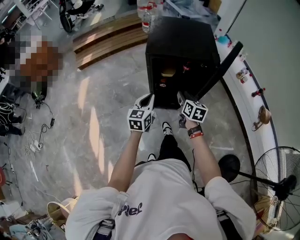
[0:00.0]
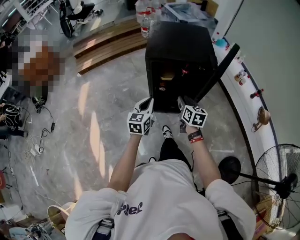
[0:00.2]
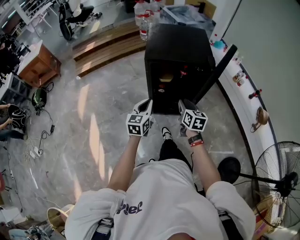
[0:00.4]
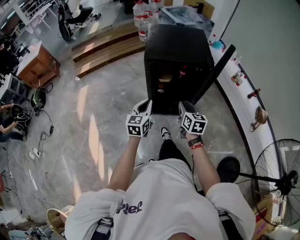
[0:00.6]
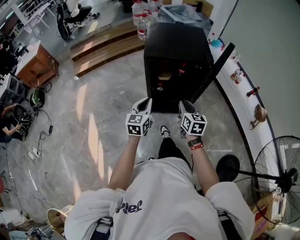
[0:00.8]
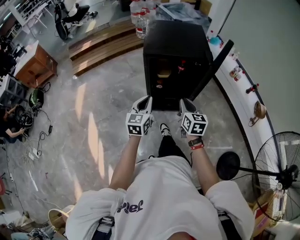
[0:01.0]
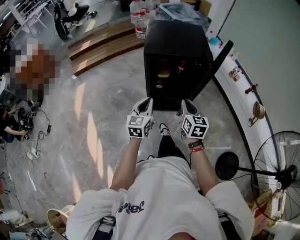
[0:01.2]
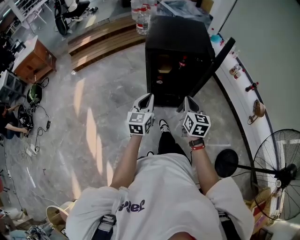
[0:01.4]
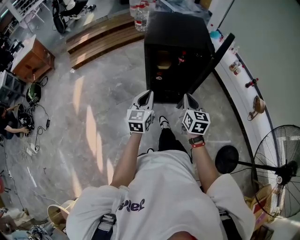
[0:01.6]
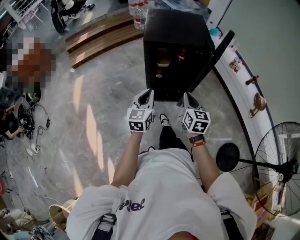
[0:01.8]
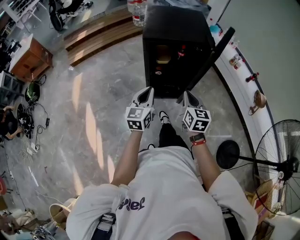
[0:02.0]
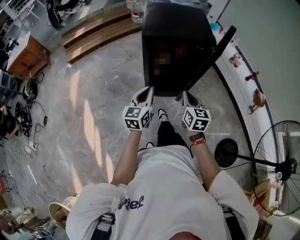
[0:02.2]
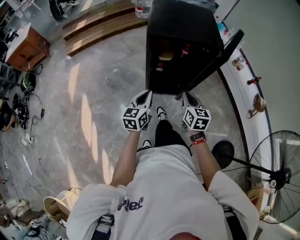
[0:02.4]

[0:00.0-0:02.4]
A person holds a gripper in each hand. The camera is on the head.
0:00.0 to 0:01.2: The right gripper moves backward and upward, approximately 15 cm, and closes its fingers. The left gripper heads backward, covering approximately 5 cm.
0:01.2 to 0:02.4: Both grippers travel together downward, approximately 5 cm.

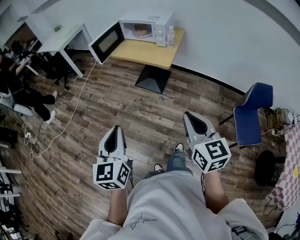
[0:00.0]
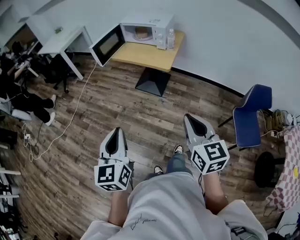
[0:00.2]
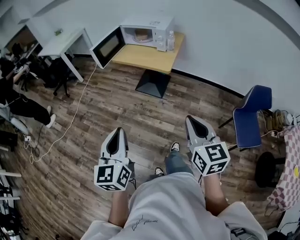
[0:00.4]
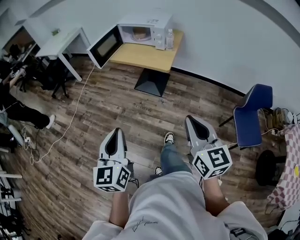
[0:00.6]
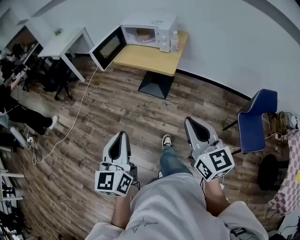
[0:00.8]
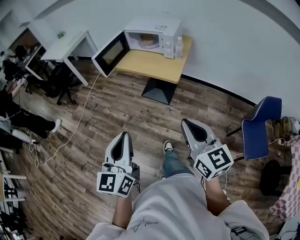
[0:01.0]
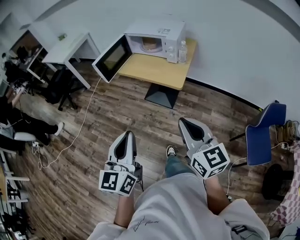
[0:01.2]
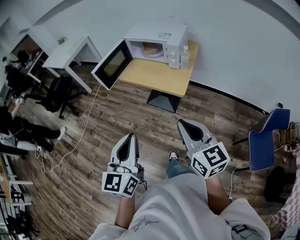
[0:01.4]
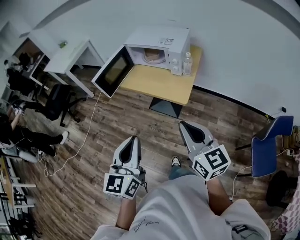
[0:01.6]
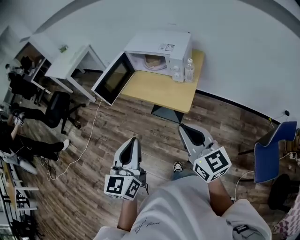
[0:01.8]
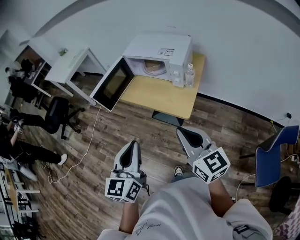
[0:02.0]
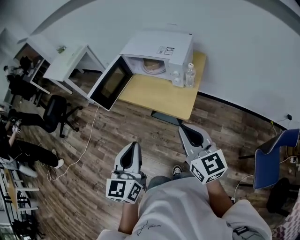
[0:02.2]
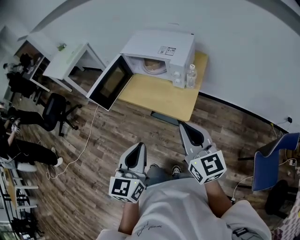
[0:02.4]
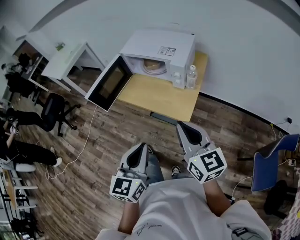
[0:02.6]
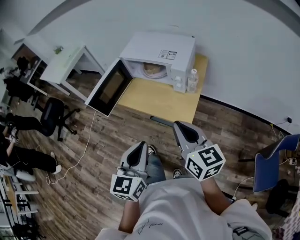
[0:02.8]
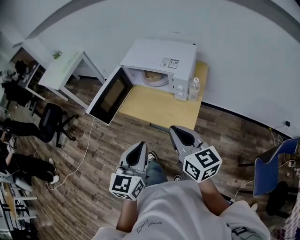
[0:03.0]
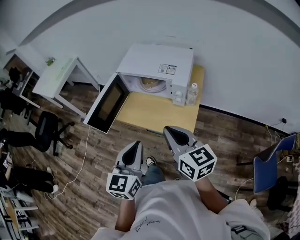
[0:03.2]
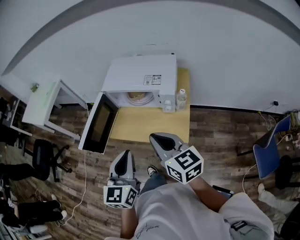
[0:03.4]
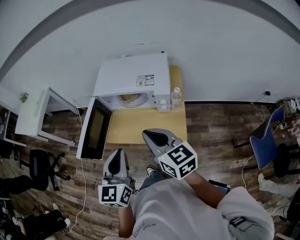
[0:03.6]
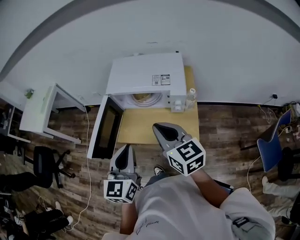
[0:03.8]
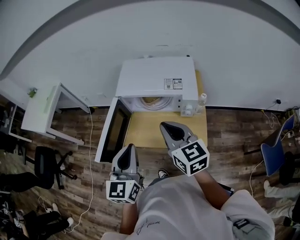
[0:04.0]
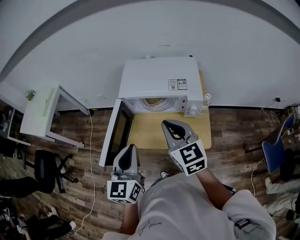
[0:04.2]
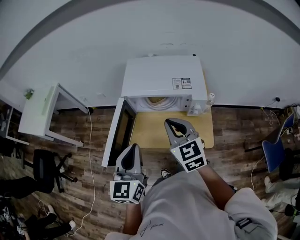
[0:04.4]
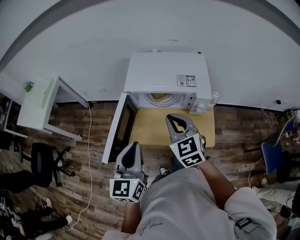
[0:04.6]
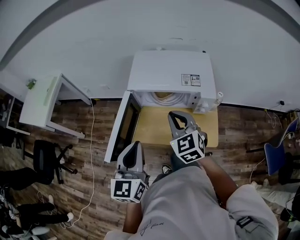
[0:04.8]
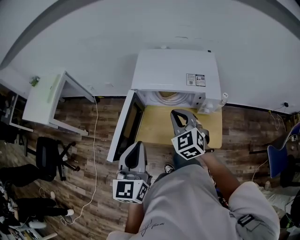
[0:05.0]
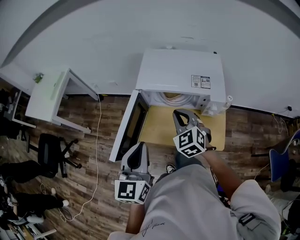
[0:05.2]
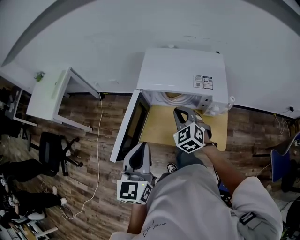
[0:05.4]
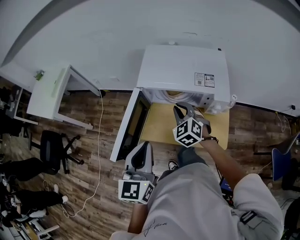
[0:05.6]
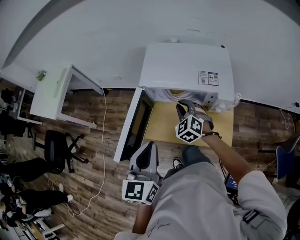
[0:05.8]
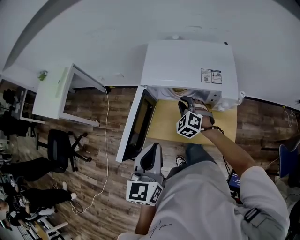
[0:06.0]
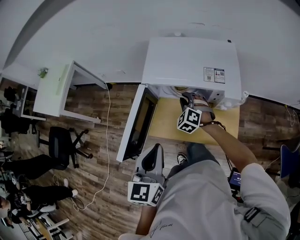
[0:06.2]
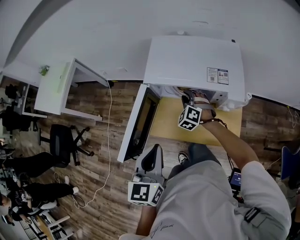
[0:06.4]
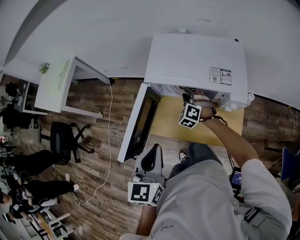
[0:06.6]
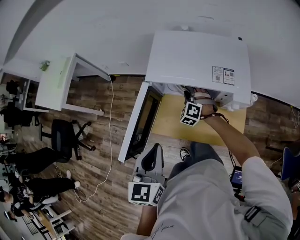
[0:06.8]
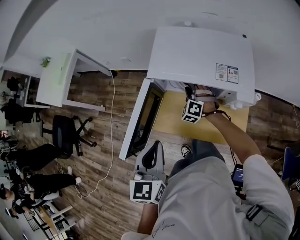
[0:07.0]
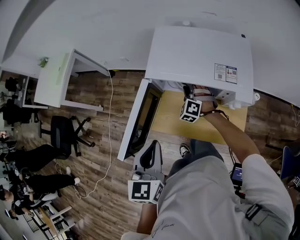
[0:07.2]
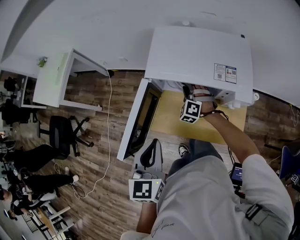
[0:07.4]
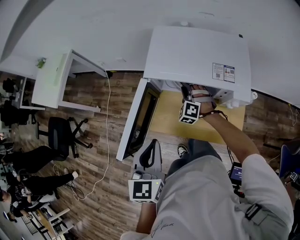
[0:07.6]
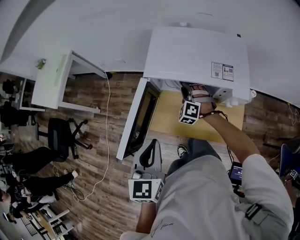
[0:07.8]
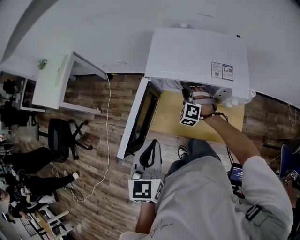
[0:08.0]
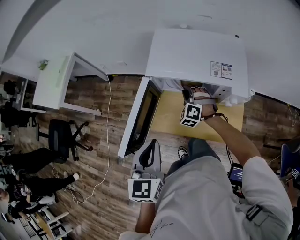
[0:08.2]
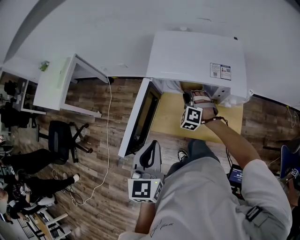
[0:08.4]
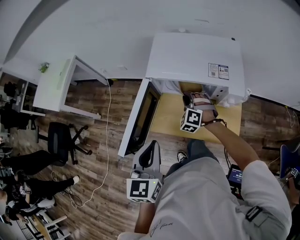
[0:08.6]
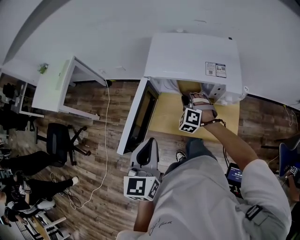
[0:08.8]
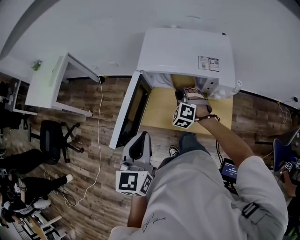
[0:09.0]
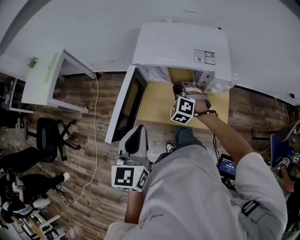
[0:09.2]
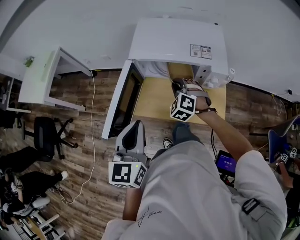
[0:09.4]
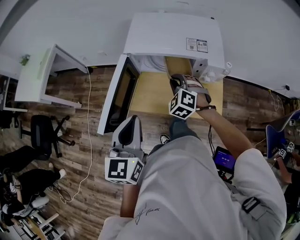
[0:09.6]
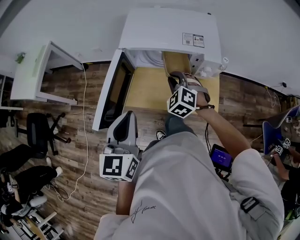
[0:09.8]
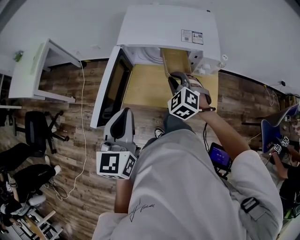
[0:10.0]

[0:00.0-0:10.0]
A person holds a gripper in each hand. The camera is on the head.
0:00.0 to 0:01.4: Both grippers travel together forward, some 20 cm.
0:01.4 to 0:02.8: Both grippers move forward, roughly 20 cm.
0:02.8 to 0:04.2: Both grippers move forward and to the left, some 30 cm. The right gripper changes its angle by roughly 30 degrees.
0:04.2 to 0:05.8: The right gripper heads downward and forward, covering some 25 cm, and rotates roughly 40 degrees.
0:05.8 to 0:07.2: The right gripper is displaced downward and forward by roughly 15 cm, and rotates approximately 20 degrees, while the left gripper ends up some 5 cm from where it was.
0:07.2 to 0:08.6: The right gripper travels backward by some 5 cm.
0:08.6 to 0:10.0: The right gripper travels backward and upward by approximately 10 cm.

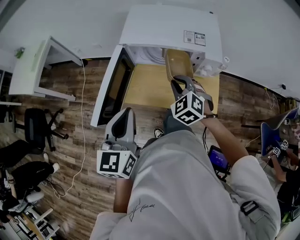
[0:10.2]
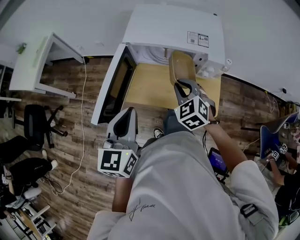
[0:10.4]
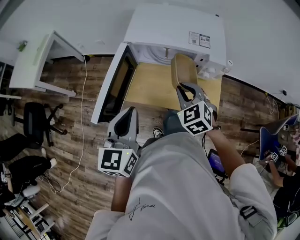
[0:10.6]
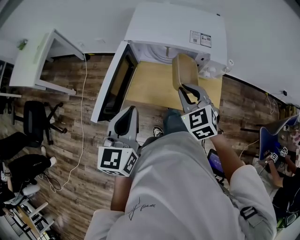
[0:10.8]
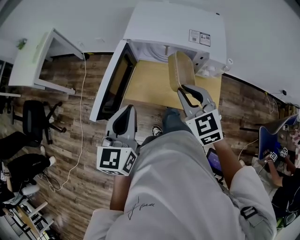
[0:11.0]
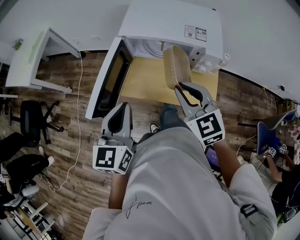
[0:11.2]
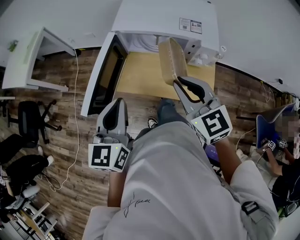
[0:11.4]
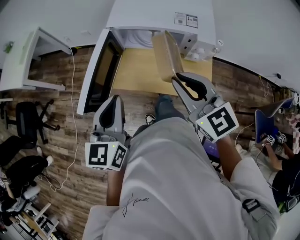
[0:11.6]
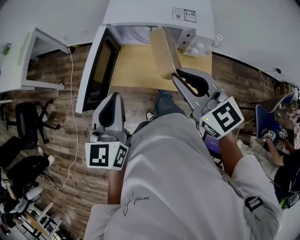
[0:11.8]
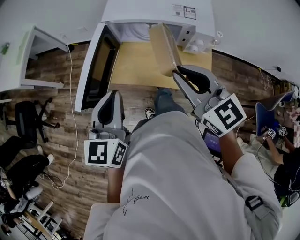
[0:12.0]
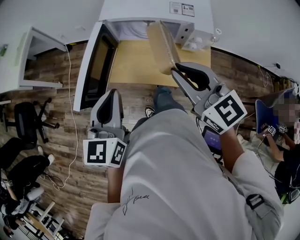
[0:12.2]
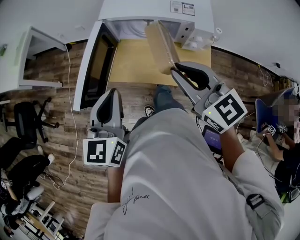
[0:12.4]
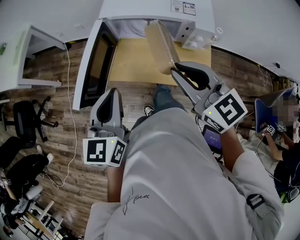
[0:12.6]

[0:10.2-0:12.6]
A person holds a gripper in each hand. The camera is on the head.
0:10.2 to 0:11.4: The right gripper is displaced upward and backward by about 15 cm, and turns by about 40 degrees.
0:11.4 to 0:12.6: The grippers make only small movements.

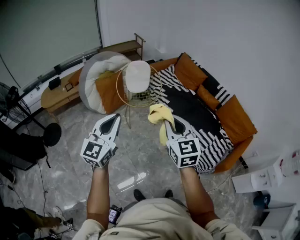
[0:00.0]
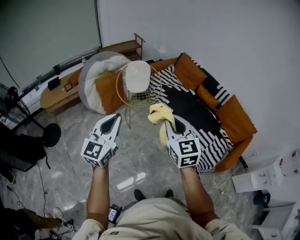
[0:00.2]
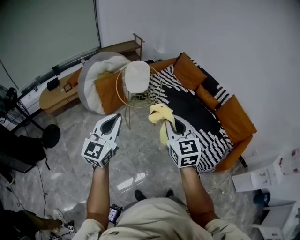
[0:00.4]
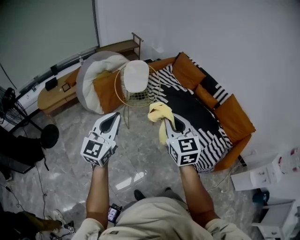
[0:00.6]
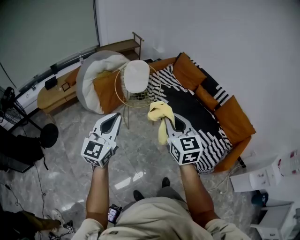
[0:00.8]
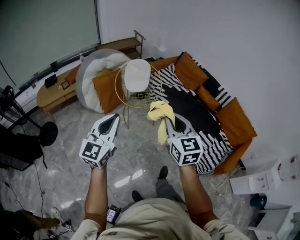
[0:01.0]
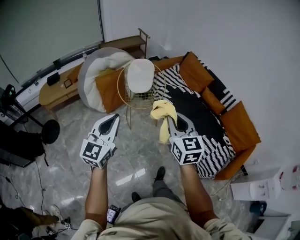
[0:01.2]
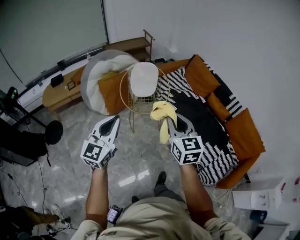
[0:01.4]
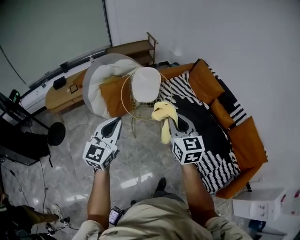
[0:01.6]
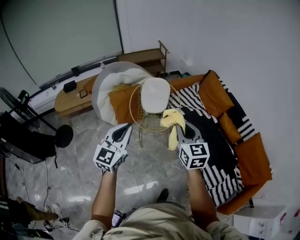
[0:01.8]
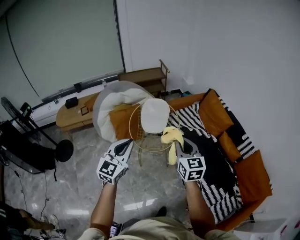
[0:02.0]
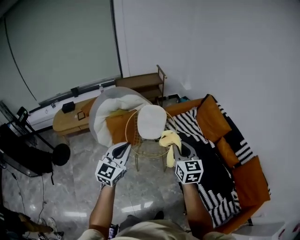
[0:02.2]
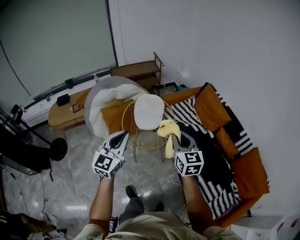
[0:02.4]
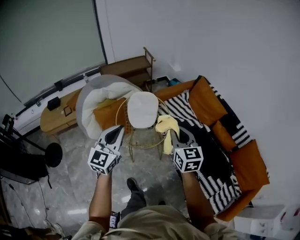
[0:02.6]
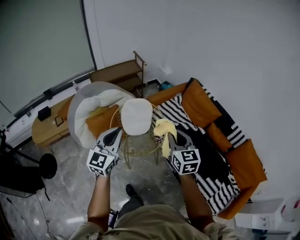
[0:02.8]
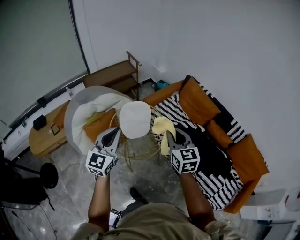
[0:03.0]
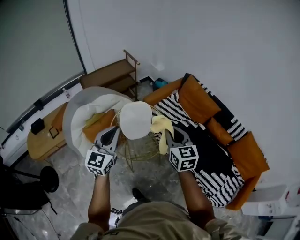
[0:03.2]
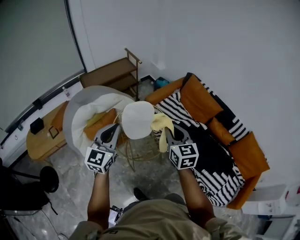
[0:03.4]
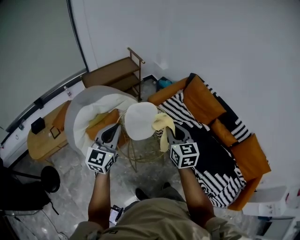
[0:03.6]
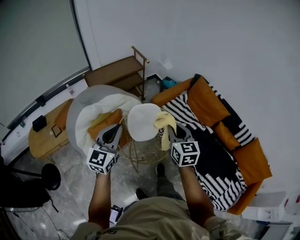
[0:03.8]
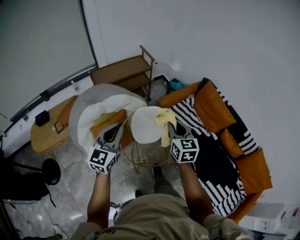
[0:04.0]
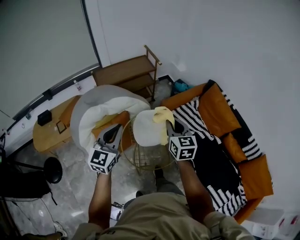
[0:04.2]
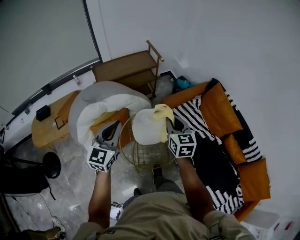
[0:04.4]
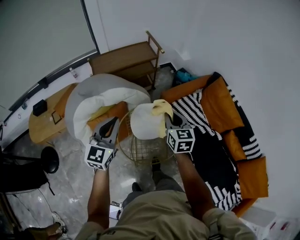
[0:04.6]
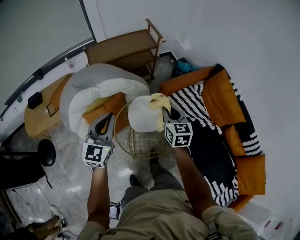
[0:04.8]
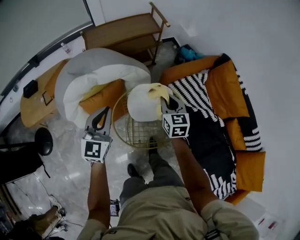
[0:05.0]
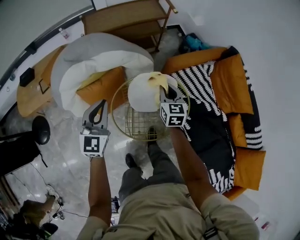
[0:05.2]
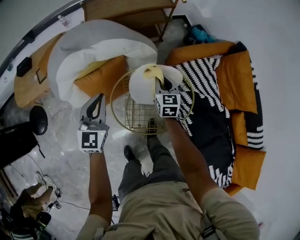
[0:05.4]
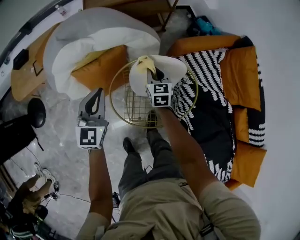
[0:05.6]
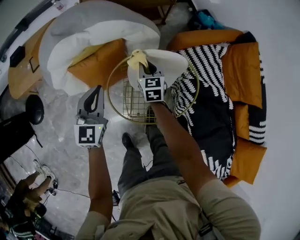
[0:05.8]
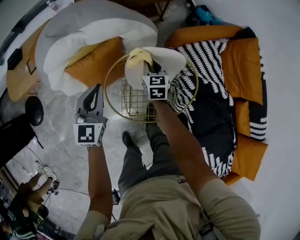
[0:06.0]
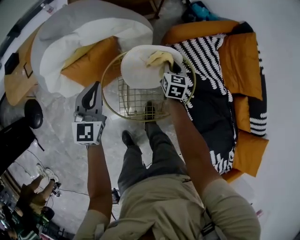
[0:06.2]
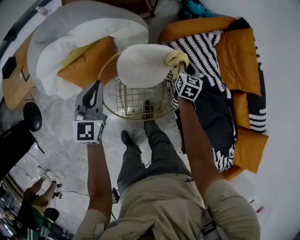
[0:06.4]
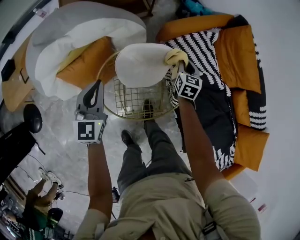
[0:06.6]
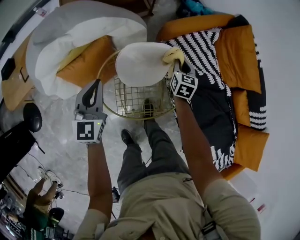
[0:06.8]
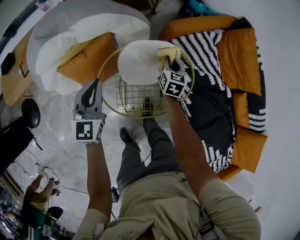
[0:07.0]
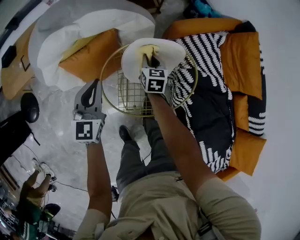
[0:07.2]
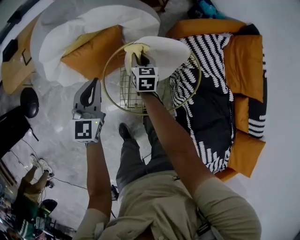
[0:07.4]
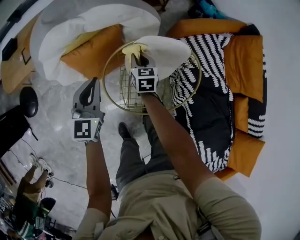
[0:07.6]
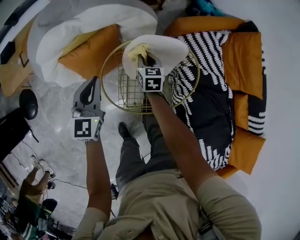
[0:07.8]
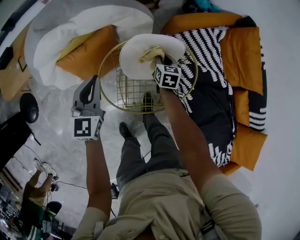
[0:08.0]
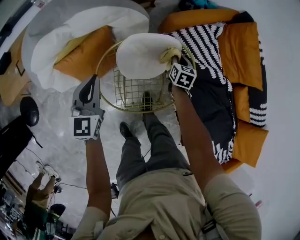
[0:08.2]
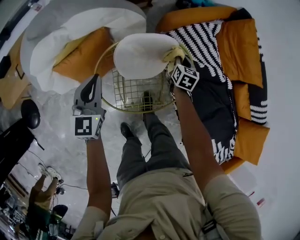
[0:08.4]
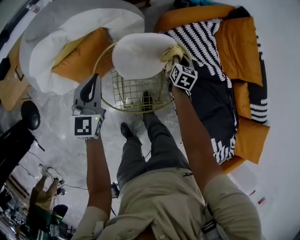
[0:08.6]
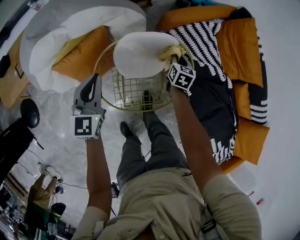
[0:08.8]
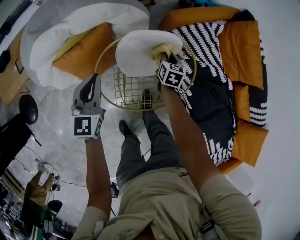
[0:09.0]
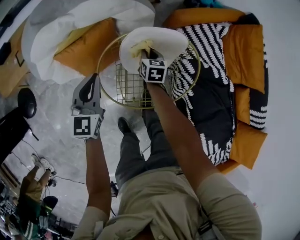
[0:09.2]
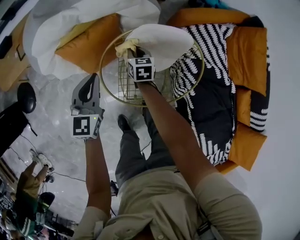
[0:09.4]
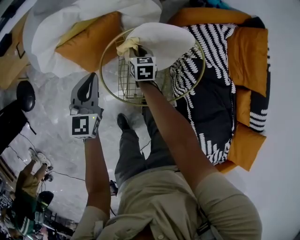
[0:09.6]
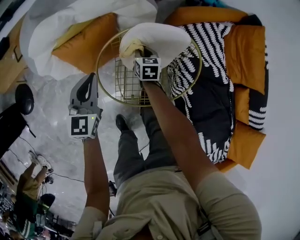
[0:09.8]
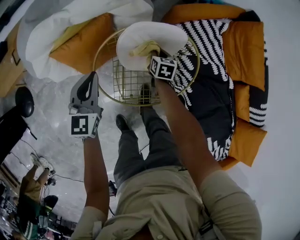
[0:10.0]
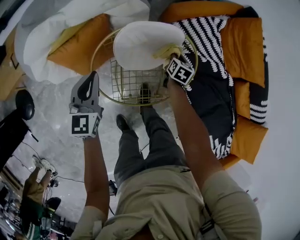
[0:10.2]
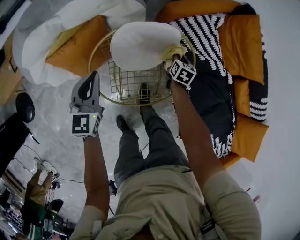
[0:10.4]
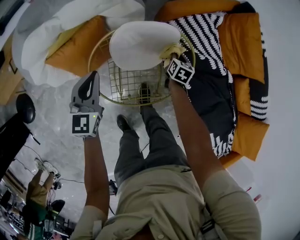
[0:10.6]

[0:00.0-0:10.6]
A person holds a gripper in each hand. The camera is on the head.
0:00.0 to 0:01.6: The grippers both shift forward by about 25 cm.
0:01.6 to 0:03.0: Both grippers move forward, some 30 cm.
0:03.0 to 0:04.6: The left gripper shifts about 25 cm forward and to the left; the right gripper is displaced forward, to the left and downward by roughly 35 cm.
0:04.6 to 0:06.0: Both grippers move downward, some 30 cm.
0:06.0 to 0:07.6: The right gripper goes to the right and returns, approximately 20 cm each way.
0:07.6 to 0:09.0: The right gripper is displaced to the right by about 20 cm, and rotates approximately 20 degrees.
0:09.0 to 0:10.6: The right gripper heads downward, covering about 5 cm, and goes to the left and returns, some 20 cm each way.
